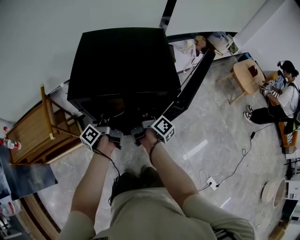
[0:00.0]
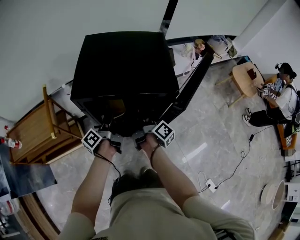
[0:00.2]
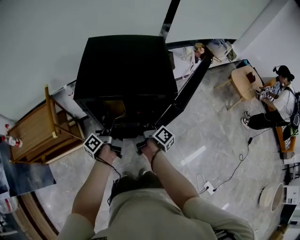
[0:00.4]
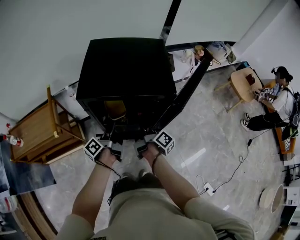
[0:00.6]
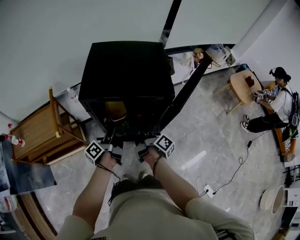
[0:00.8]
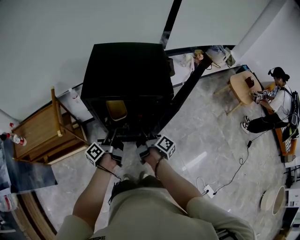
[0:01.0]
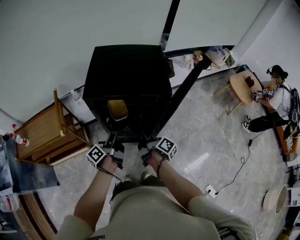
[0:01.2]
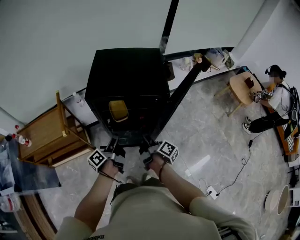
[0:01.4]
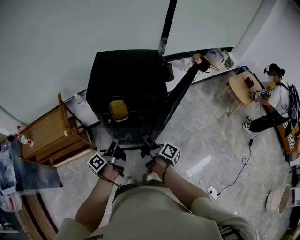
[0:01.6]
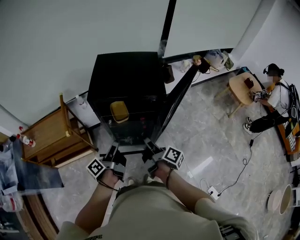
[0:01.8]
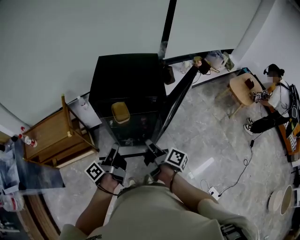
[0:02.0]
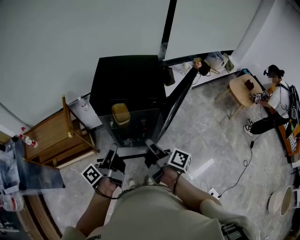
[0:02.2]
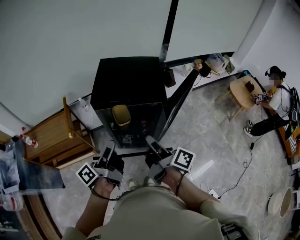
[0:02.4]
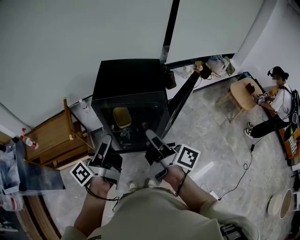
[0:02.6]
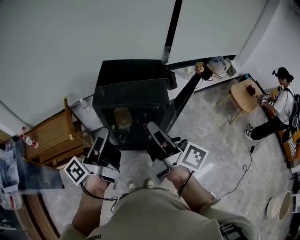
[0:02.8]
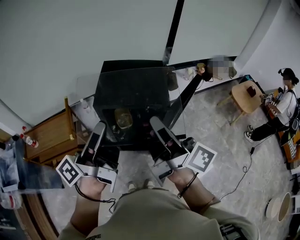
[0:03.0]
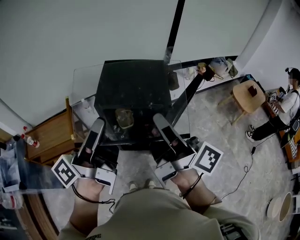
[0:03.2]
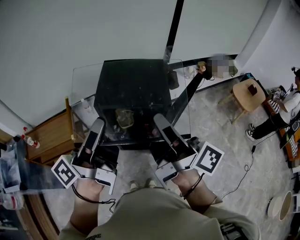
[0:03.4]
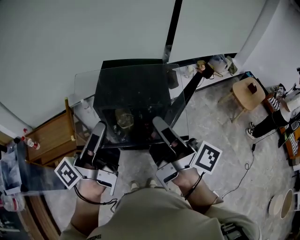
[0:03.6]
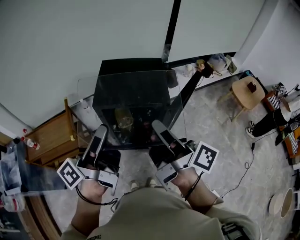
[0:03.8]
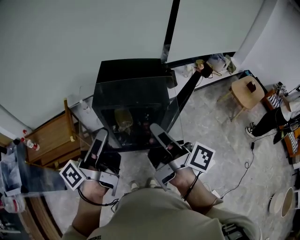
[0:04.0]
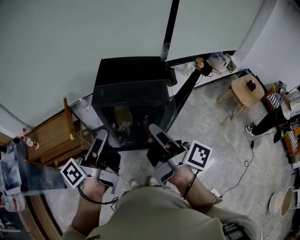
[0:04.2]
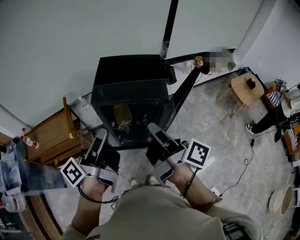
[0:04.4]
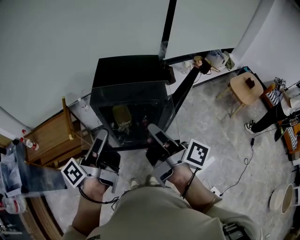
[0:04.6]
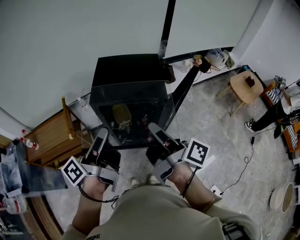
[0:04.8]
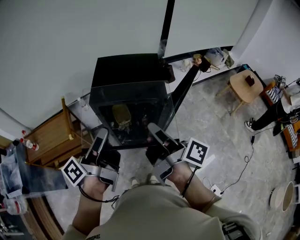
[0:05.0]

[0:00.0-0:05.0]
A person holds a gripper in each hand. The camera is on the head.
0:00.0 to 0:01.6: Both grippers travel together backward, roughly 20 cm.
0:01.6 to 0:03.4: The grippers both shift upward by about 35 cm. The left gripper turns by about 30 degrees. Meanwhile the right gripper swivels some 40 degrees.
0:03.4 to 0:05.0: Both grippers travel together downward, roughly 10 cm.

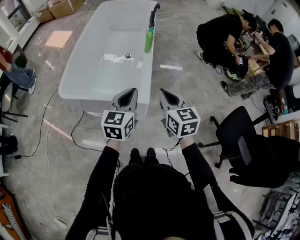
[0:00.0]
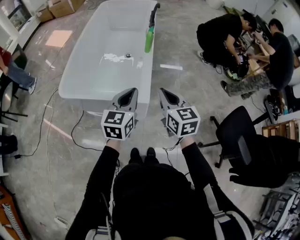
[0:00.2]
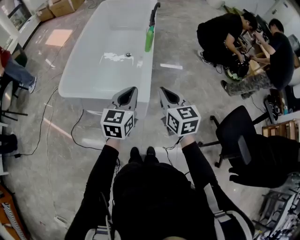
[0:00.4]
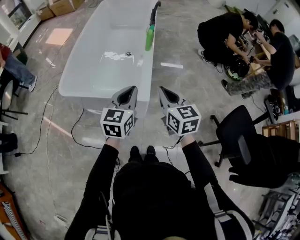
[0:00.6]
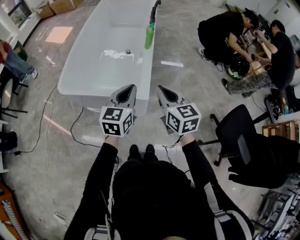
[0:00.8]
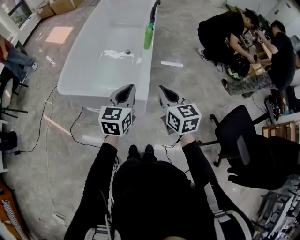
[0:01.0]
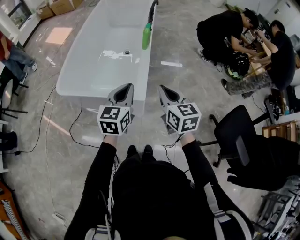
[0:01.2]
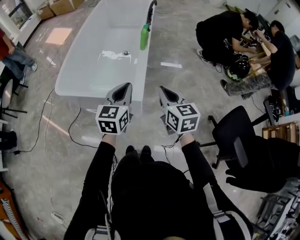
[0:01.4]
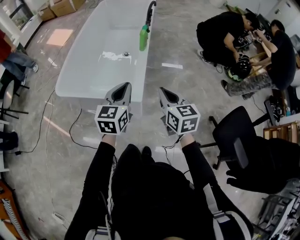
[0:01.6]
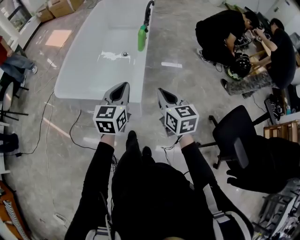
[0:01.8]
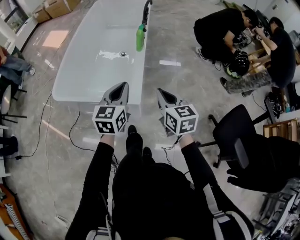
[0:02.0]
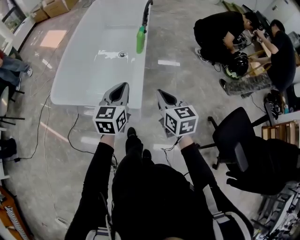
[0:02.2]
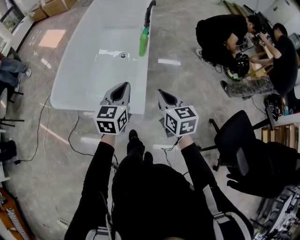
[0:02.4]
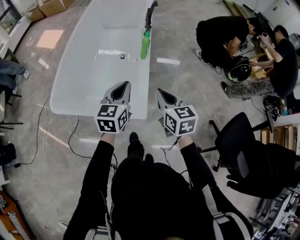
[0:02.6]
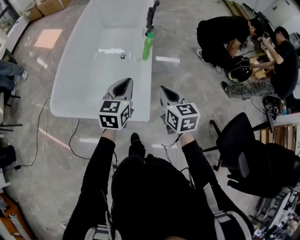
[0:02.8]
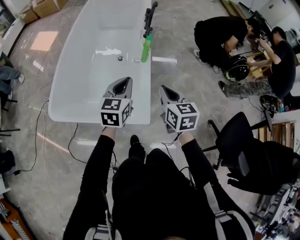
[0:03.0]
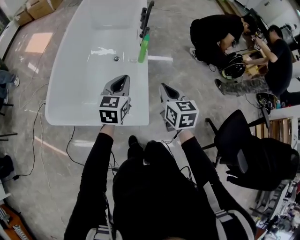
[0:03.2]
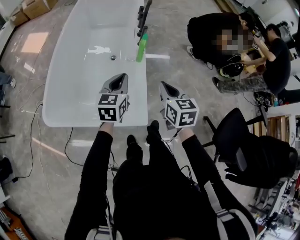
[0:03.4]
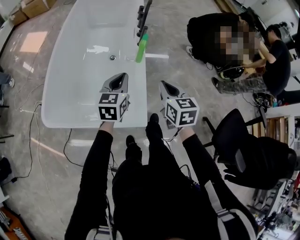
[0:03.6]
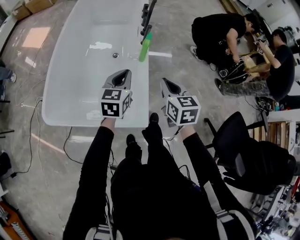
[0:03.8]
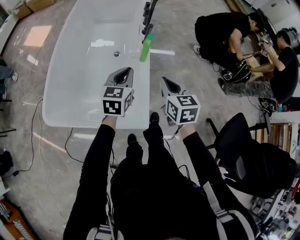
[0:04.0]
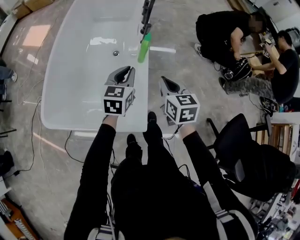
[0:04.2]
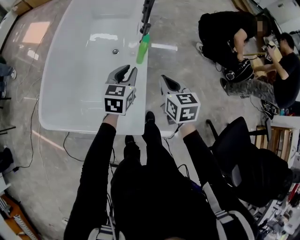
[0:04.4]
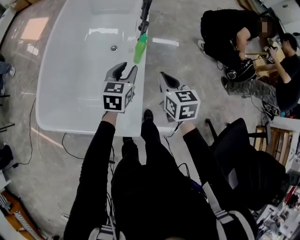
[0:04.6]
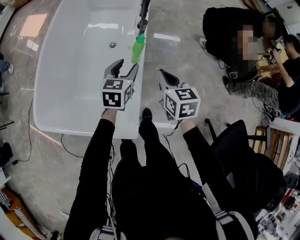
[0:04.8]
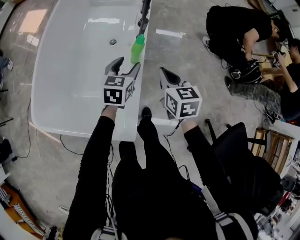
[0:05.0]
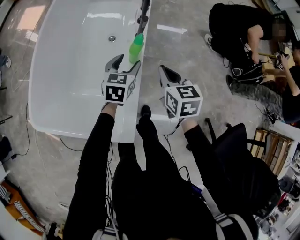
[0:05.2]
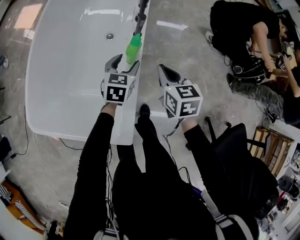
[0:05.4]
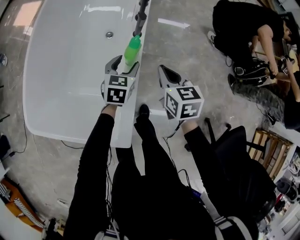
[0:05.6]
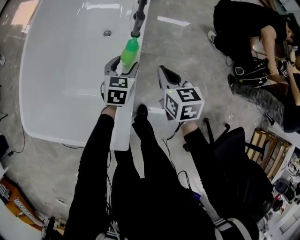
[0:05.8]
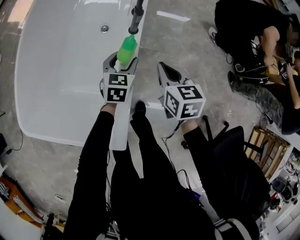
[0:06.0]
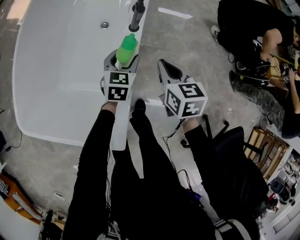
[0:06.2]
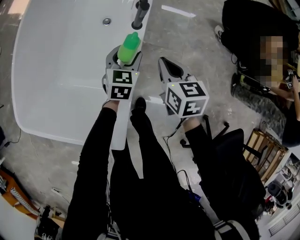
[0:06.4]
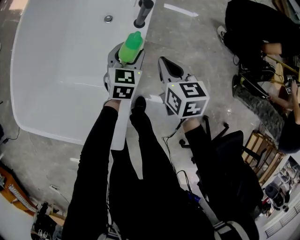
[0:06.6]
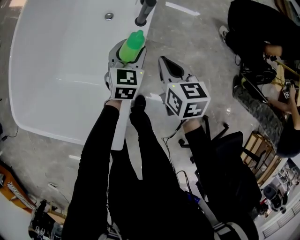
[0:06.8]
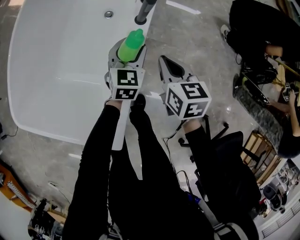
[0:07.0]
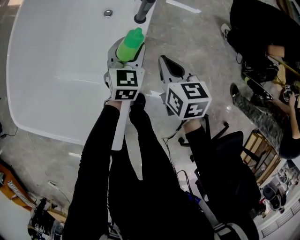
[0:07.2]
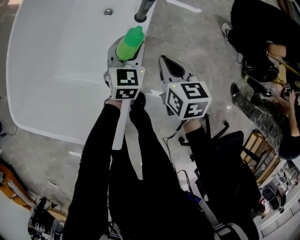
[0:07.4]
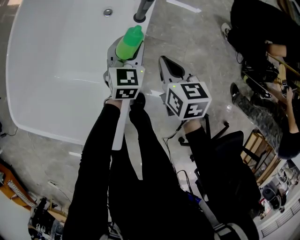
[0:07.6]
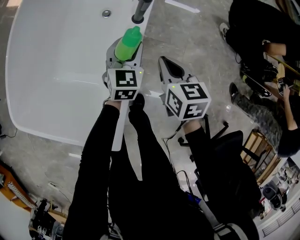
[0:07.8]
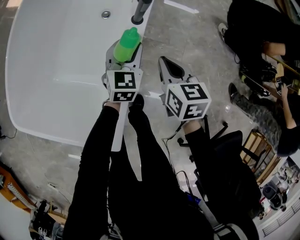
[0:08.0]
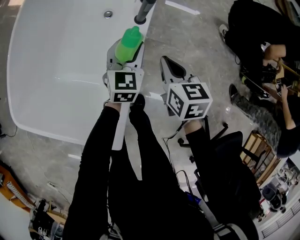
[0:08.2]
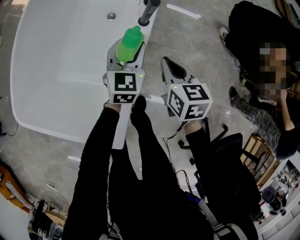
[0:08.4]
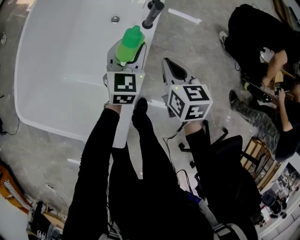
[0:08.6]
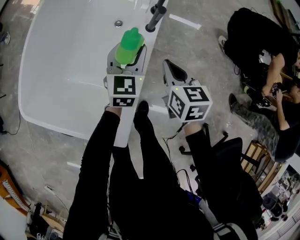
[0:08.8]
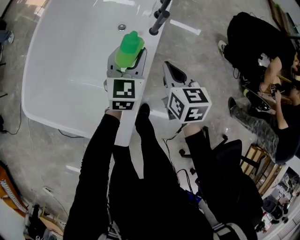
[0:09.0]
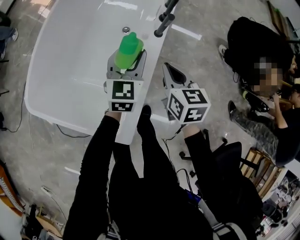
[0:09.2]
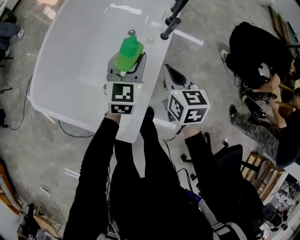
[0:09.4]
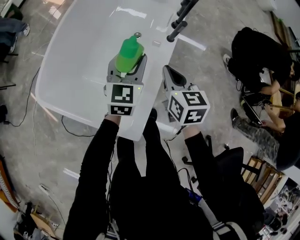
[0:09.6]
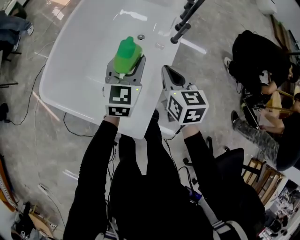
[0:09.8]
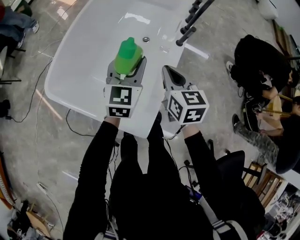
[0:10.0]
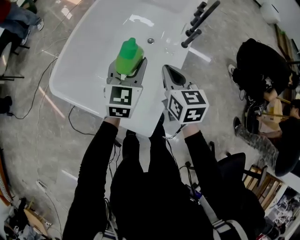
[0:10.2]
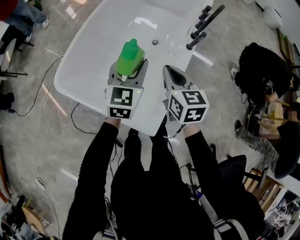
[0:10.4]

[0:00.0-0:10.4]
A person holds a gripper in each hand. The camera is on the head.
0:00.0 to 0:01.4: The grippers move only a little.
0:01.4 to 0:03.0: The grippers both shift forward by roughly 20 cm.
0:03.0 to 0:04.4: The left gripper shifts about 15 cm forward and downward. The right gripper heads forward, covering roughly 10 cm.
0:04.4 to 0:06.0: The right gripper heads forward and downward, covering roughly 20 cm; the left gripper is displaced downward and forward by some 25 cm, and opens its fingers.
0:06.0 to 0:07.4: The right gripper travels downward by some 5 cm.
0:07.4 to 0:09.0: The left gripper heads upward and to the left, covering some 15 cm. Meanwhile the right gripper moves upward, approximately 10 cm.
0:09.0 to 0:10.4: The left gripper shifts about 25 cm to the left, upward and backward. The right gripper shifts about 25 cm to the left and upward.

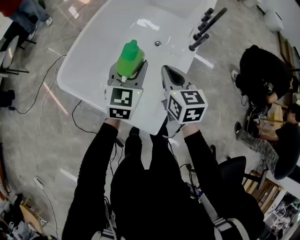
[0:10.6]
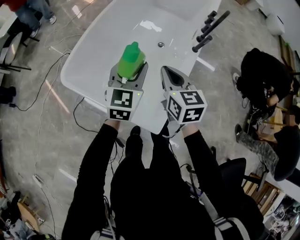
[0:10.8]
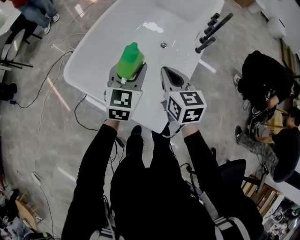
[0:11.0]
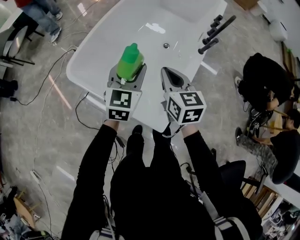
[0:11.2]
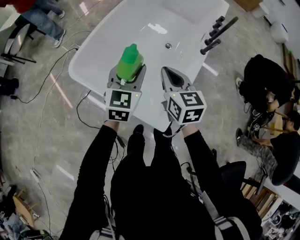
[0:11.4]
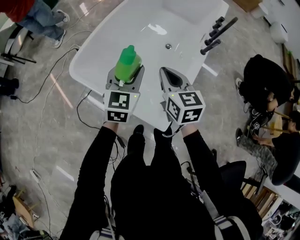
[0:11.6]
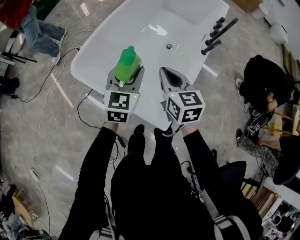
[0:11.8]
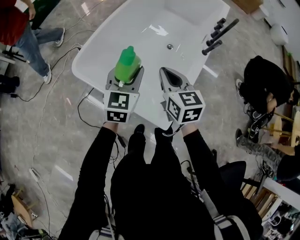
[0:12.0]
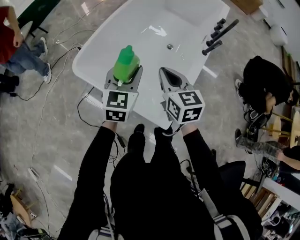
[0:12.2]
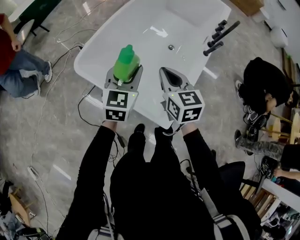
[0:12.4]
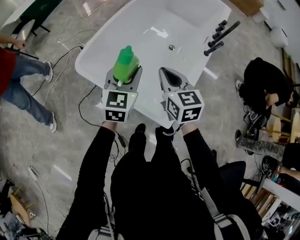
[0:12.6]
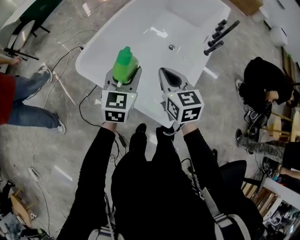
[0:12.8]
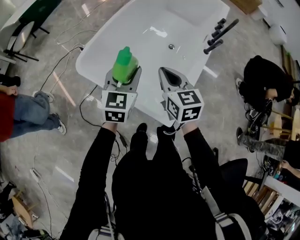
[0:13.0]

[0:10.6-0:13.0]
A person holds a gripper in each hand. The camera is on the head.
0:10.6 to 0:11.8: The two grippers go approximately 10 cm to the left.
0:11.8 to 0:13.0: The grippers make only small movements.

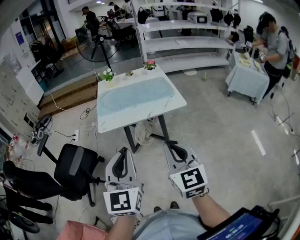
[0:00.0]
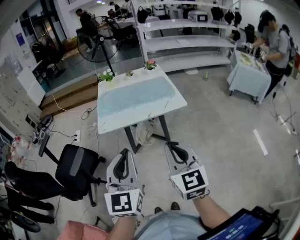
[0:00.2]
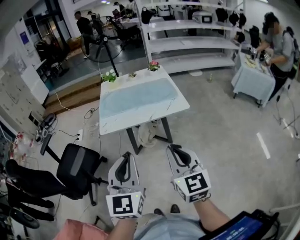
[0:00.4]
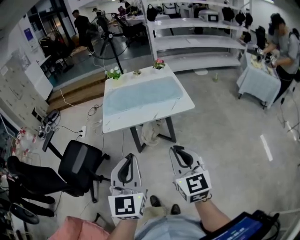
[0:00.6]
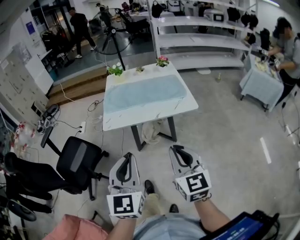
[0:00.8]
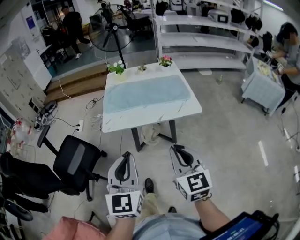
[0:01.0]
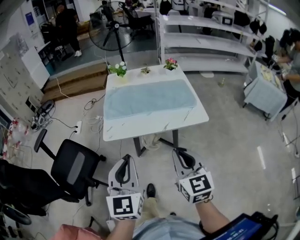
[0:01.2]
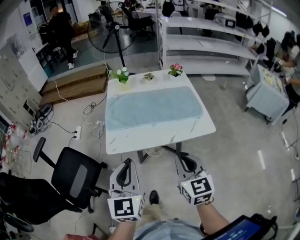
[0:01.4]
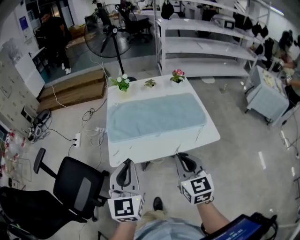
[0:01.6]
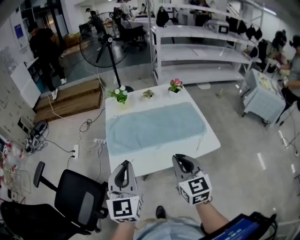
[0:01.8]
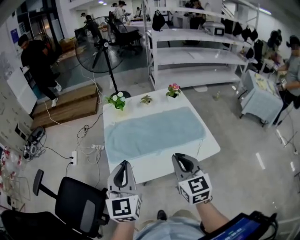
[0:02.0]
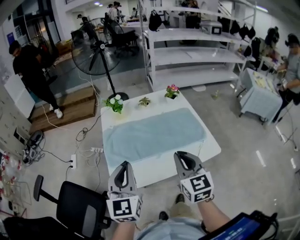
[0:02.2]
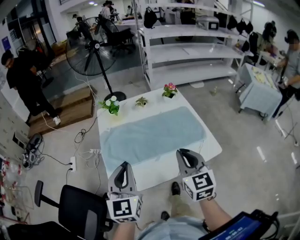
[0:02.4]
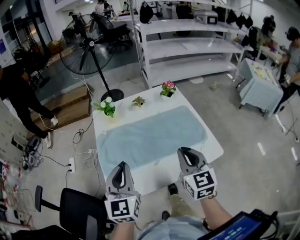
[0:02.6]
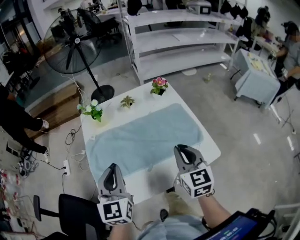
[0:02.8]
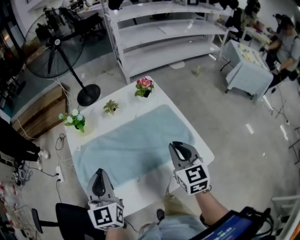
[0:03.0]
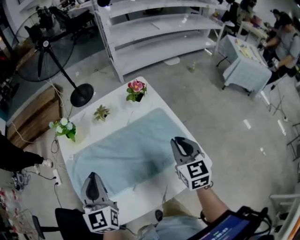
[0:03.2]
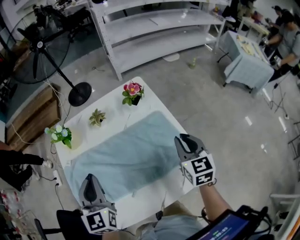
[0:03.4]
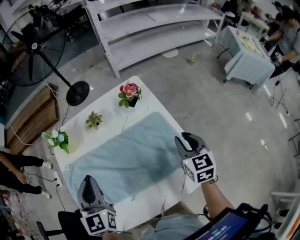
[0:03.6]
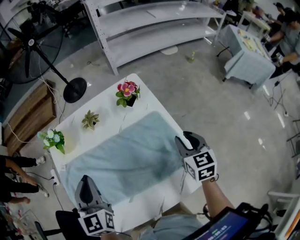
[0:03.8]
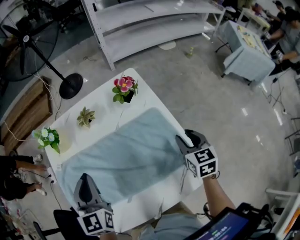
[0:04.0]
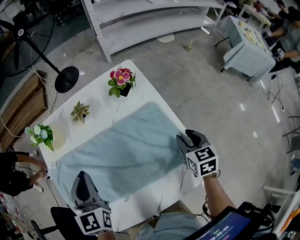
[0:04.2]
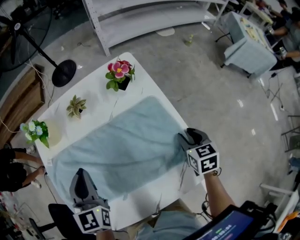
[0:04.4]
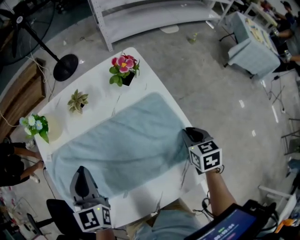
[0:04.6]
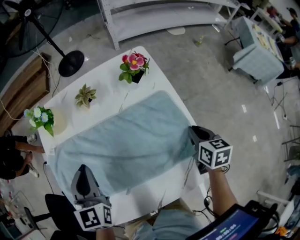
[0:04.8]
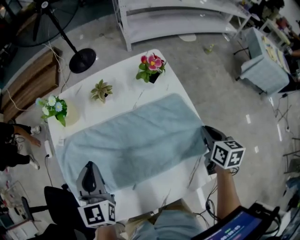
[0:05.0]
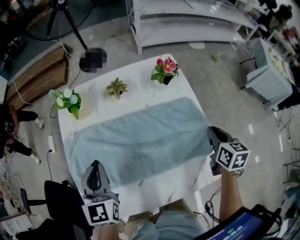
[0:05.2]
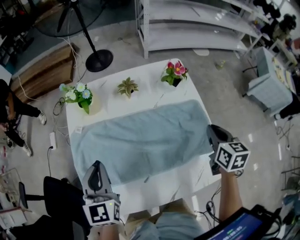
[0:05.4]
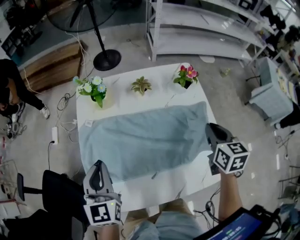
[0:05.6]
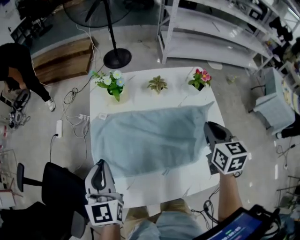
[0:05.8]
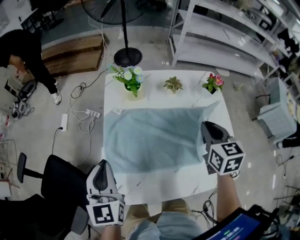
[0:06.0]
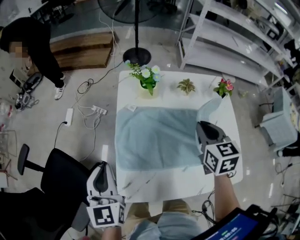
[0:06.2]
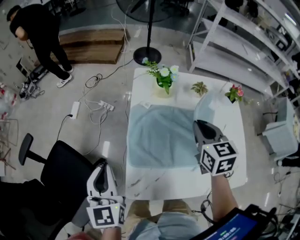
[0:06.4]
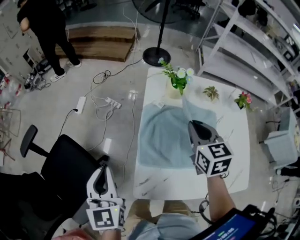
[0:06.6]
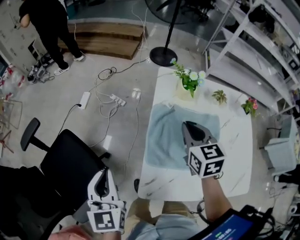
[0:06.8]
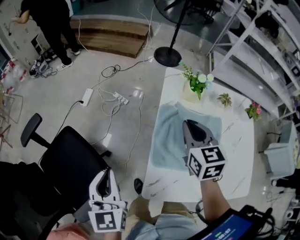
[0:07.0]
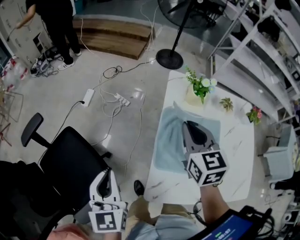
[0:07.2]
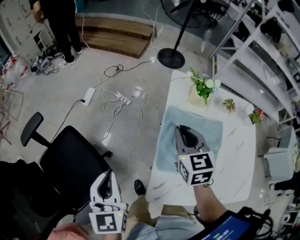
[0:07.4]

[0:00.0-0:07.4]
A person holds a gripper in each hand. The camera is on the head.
0:00.0 to 0:01.4: Both grippers move forward, roughly 25 cm.
0:01.4 to 0:03.0: The two grippers go approximately 35 cm forward.
0:03.0 to 0:04.4: The right gripper shifts about 25 cm downward, to the right and forward, changes its angle by approximately 30 degrees, and opens its fingers. The left gripper moves forward, downward and to the right, some 15 cm.
0:04.4 to 0:06.0: The left gripper travels to the left and backward by roughly 30 cm, and swivels roughly 20 degrees. Meanwhile the right gripper goes some 35 cm to the left and upward, turns by some 20 degrees, and closes.
0:06.0 to 0:07.4: The right gripper moves to the left, about 35 cm, and changes its angle by roughly 20 degrees; the left gripper travels to the left by some 25 cm.
